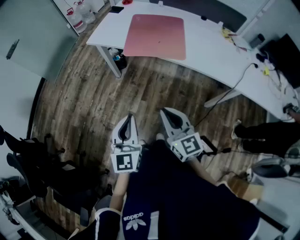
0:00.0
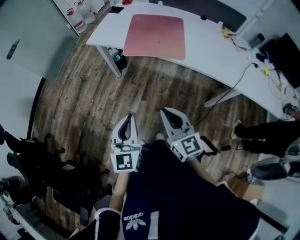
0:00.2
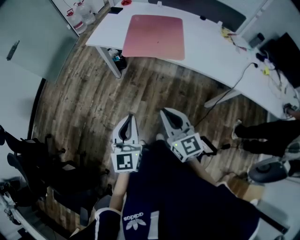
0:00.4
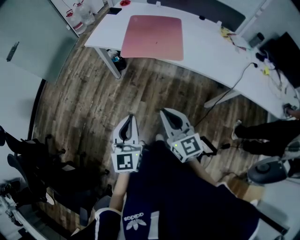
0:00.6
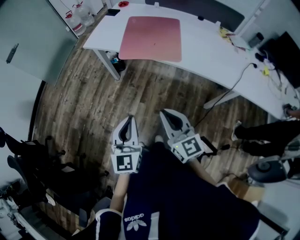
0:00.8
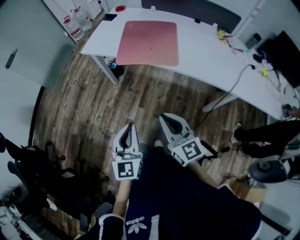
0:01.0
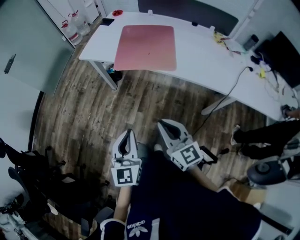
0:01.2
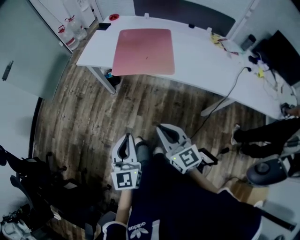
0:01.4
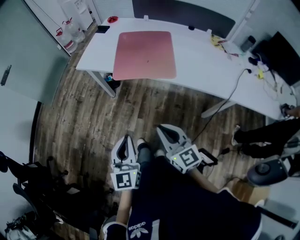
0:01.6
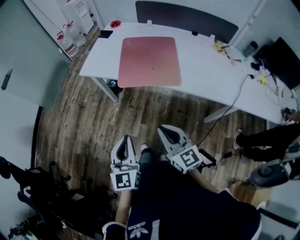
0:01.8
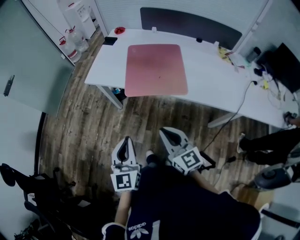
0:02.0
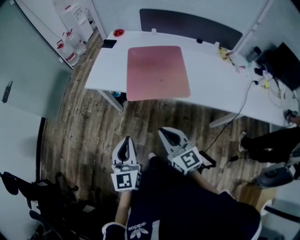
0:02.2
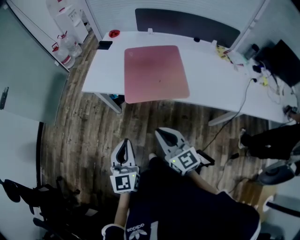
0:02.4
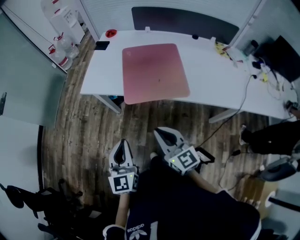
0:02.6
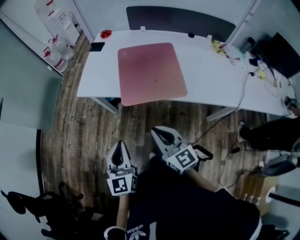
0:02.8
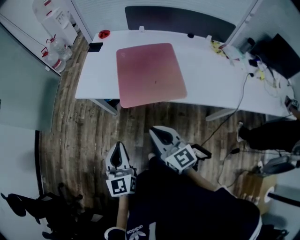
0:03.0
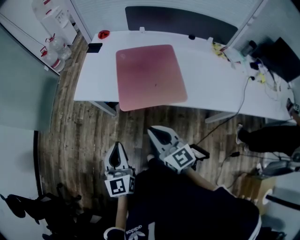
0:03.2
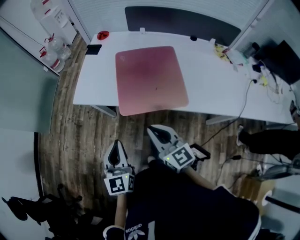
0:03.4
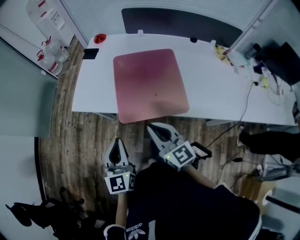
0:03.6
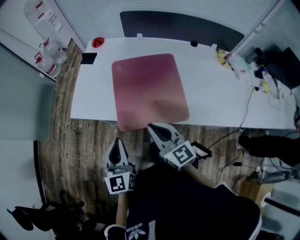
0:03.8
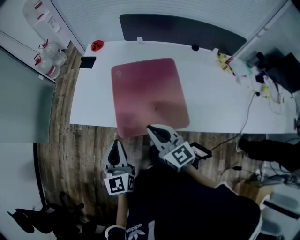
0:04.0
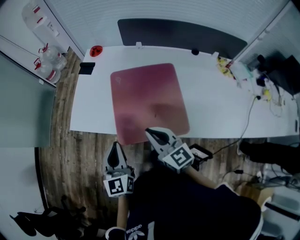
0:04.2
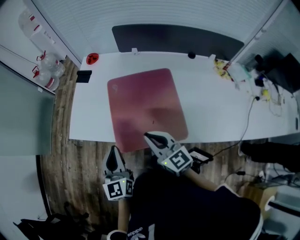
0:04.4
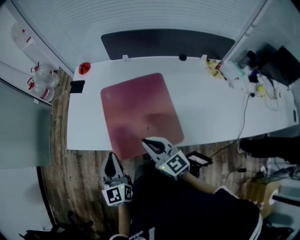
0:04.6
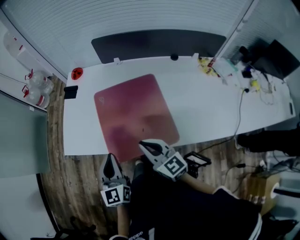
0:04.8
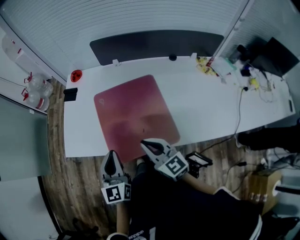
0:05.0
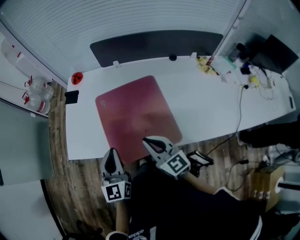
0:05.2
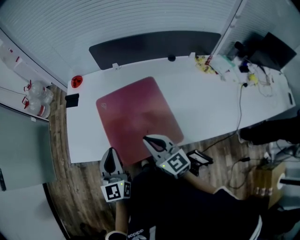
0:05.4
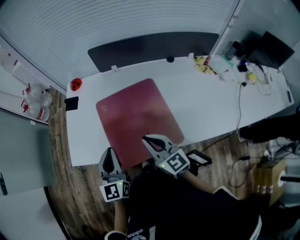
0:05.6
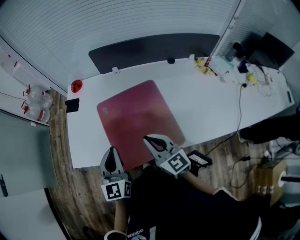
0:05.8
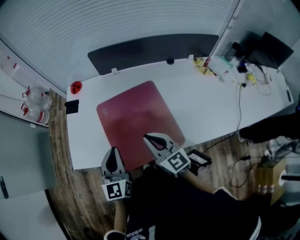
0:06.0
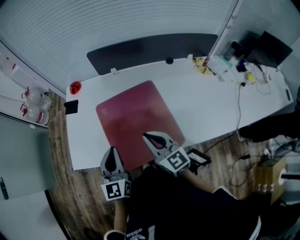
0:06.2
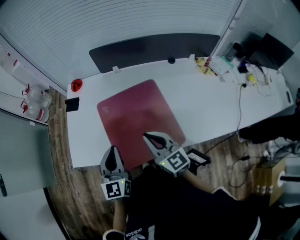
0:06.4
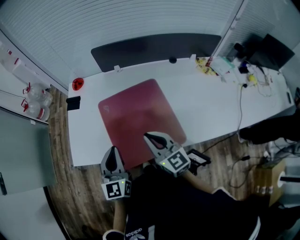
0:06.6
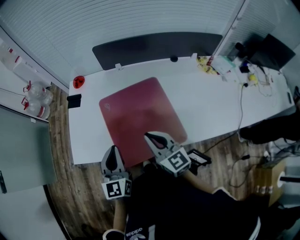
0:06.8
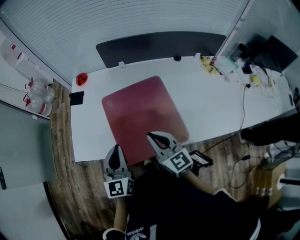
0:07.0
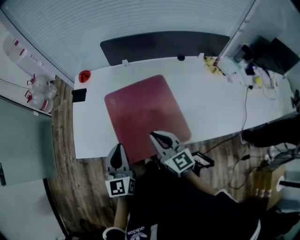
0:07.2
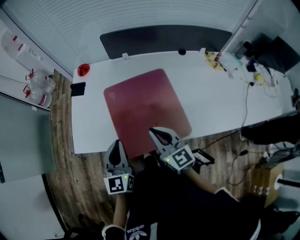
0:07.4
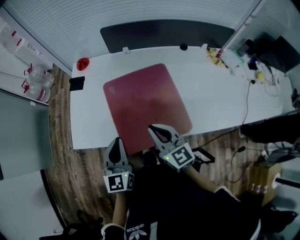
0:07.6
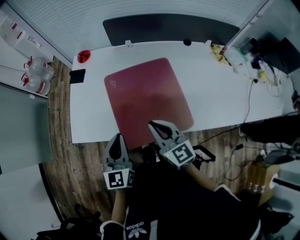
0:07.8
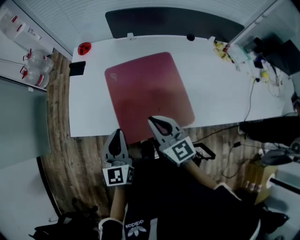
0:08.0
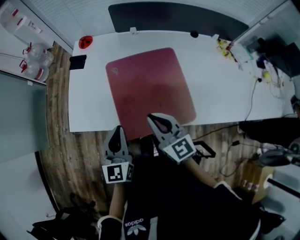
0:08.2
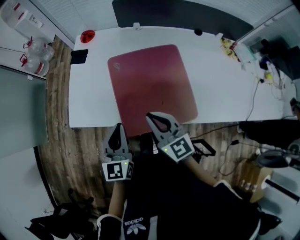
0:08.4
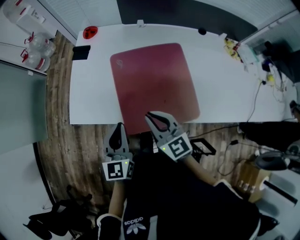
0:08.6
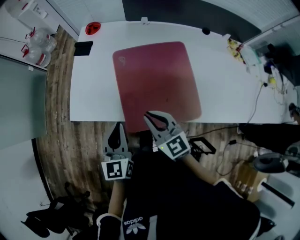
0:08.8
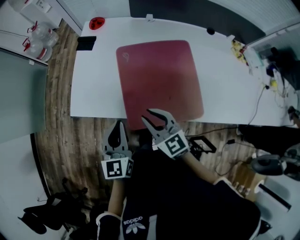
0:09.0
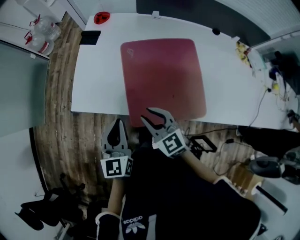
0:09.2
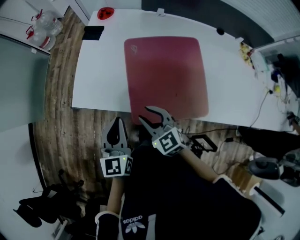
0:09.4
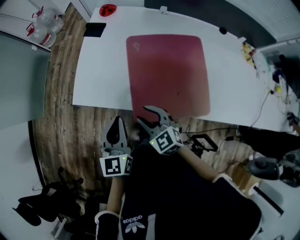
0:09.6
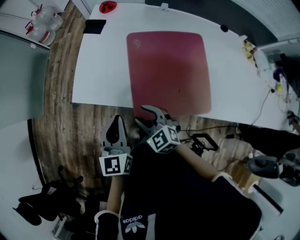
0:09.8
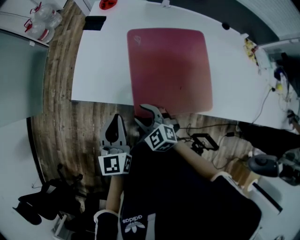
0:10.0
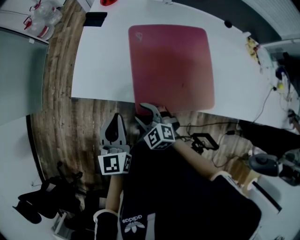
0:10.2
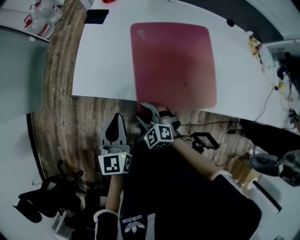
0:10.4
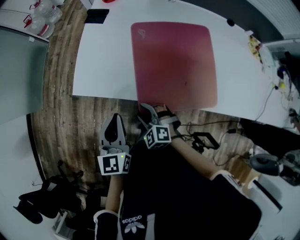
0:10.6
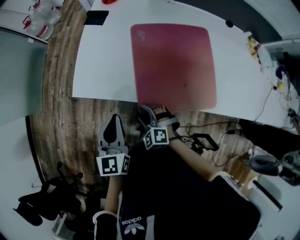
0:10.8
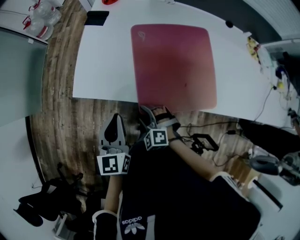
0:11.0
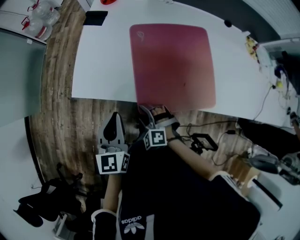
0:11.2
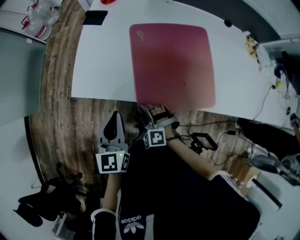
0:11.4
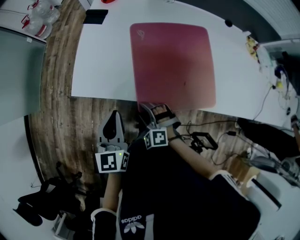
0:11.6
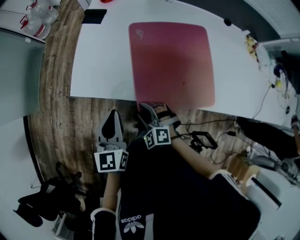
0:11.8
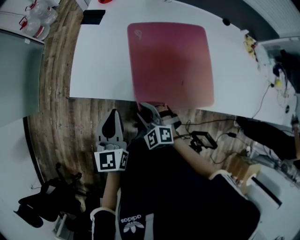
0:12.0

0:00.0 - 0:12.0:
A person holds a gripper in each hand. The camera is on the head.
0:00.0 - 0:01.6: The right gripper changes place by roughly 5 cm; the left gripper ends up about 5 cm from where it was.
0:01.6 - 0:03.0: Both grippers move forward and to the left, about 20 cm.
0:03.0 - 0:04.4: The right gripper goes roughly 25 cm forward and to the right; the left gripper shifts approximately 25 cm forward.
0:04.4 - 0:06.0: Both grippers move forward, approximately 5 cm.
0:06.0 - 0:07.6: The grippers make only small movements.
0:07.6 - 0:09.0: The right gripper heads to the left and downward, covering some 10 cm, and swivels approximately 20 degrees; the left gripper is displaced to the left by approximately 5 cm.
0:09.0 - 0:10.4: The left gripper goes roughly 5 cm to the left, while the right gripper travels downward and to the left by approximately 20 cm, changes its angle by some 40 degrees, and opens.

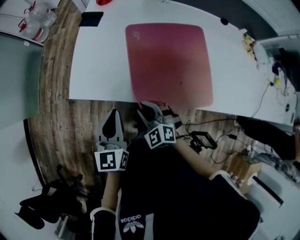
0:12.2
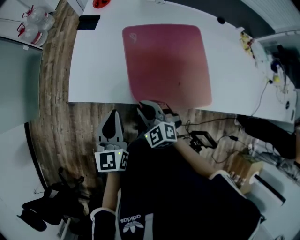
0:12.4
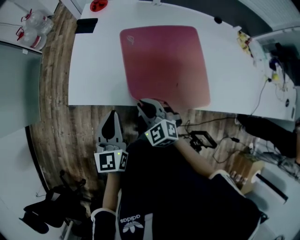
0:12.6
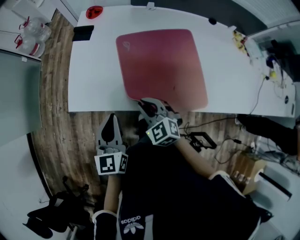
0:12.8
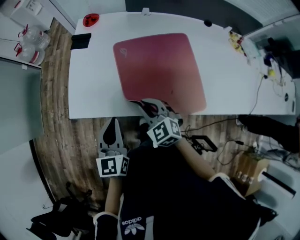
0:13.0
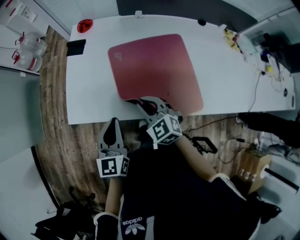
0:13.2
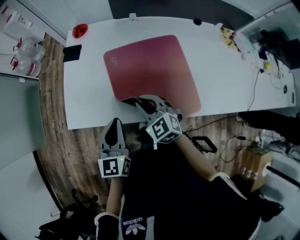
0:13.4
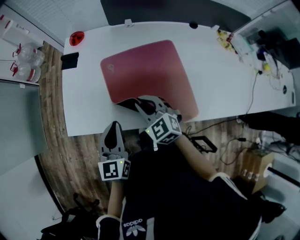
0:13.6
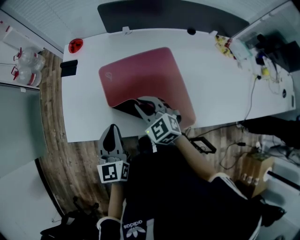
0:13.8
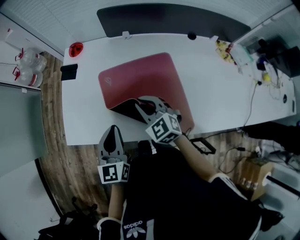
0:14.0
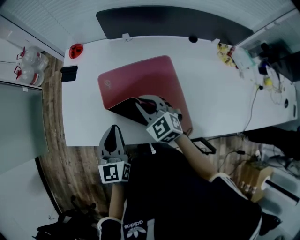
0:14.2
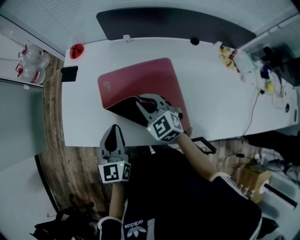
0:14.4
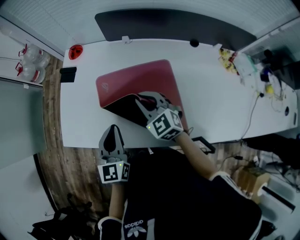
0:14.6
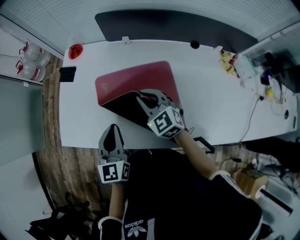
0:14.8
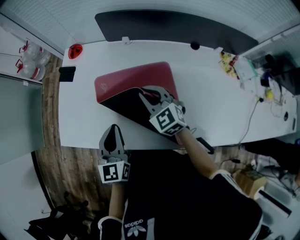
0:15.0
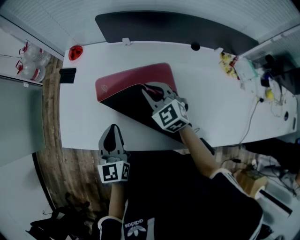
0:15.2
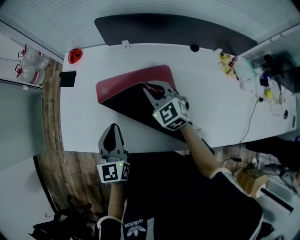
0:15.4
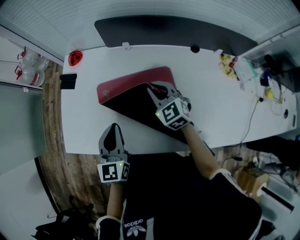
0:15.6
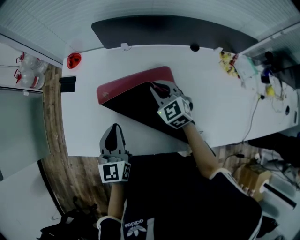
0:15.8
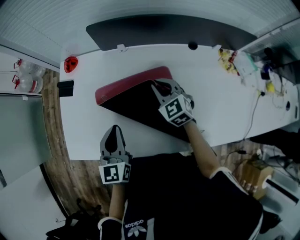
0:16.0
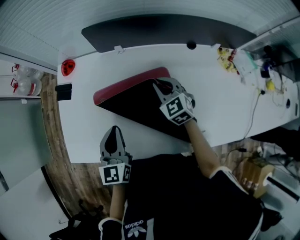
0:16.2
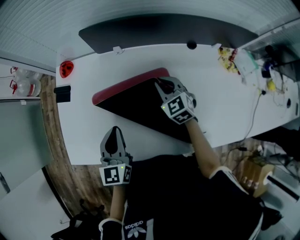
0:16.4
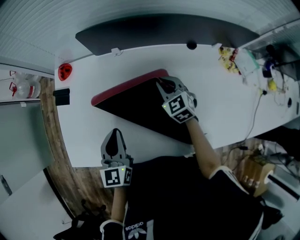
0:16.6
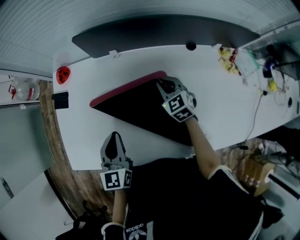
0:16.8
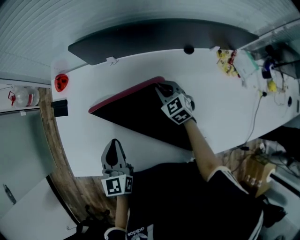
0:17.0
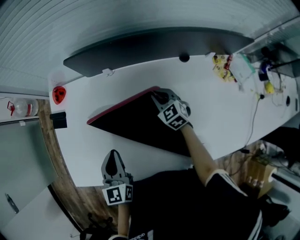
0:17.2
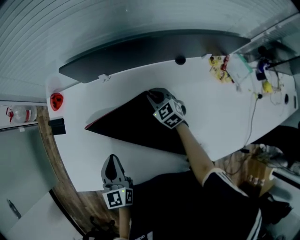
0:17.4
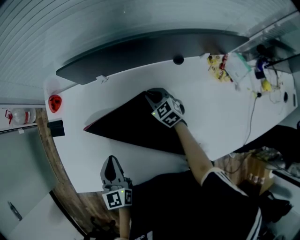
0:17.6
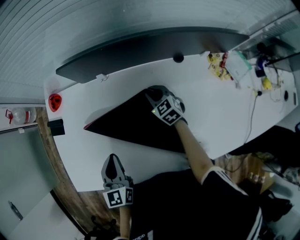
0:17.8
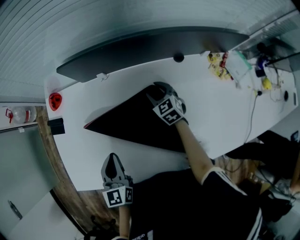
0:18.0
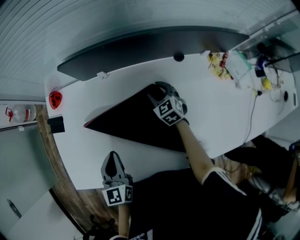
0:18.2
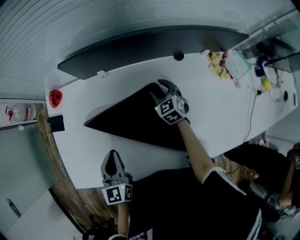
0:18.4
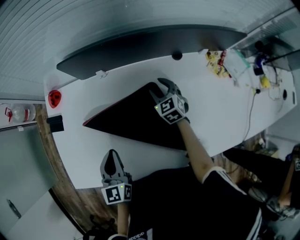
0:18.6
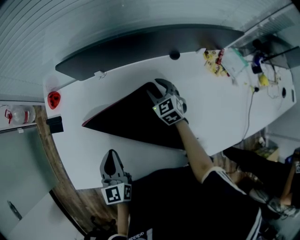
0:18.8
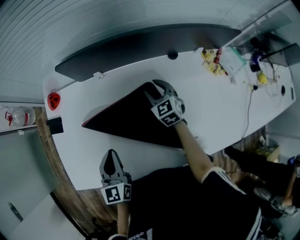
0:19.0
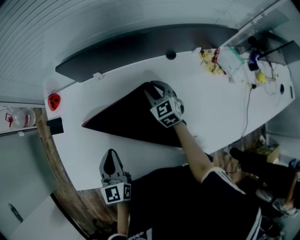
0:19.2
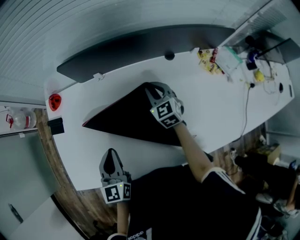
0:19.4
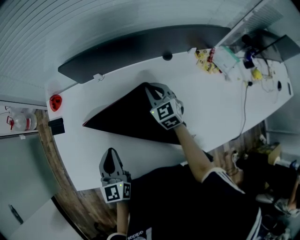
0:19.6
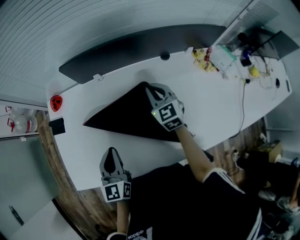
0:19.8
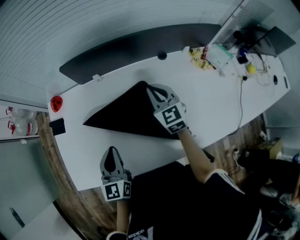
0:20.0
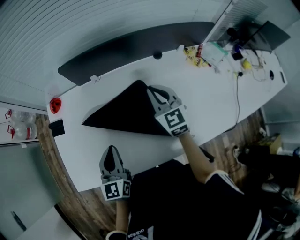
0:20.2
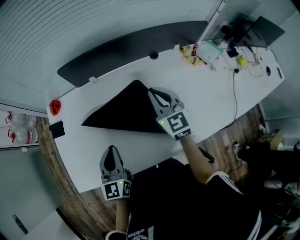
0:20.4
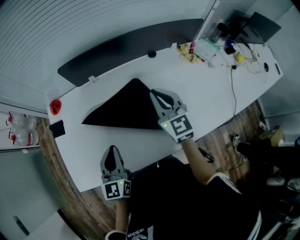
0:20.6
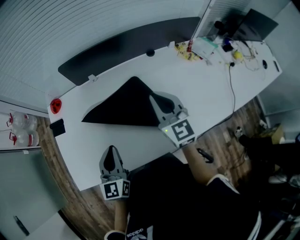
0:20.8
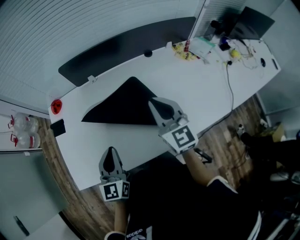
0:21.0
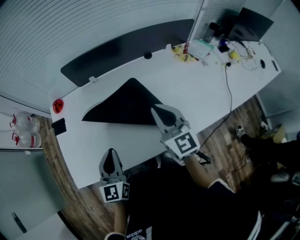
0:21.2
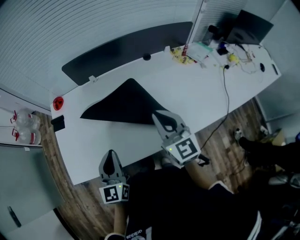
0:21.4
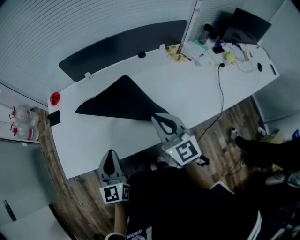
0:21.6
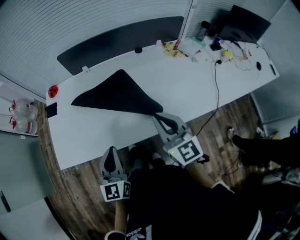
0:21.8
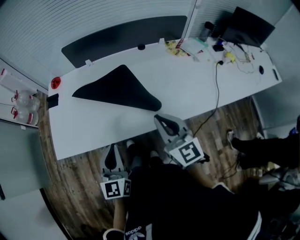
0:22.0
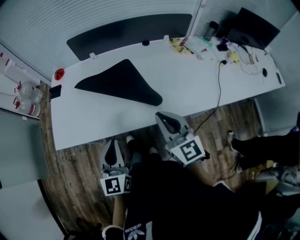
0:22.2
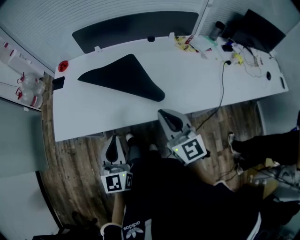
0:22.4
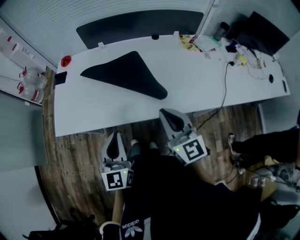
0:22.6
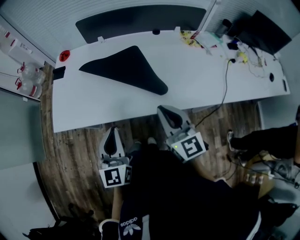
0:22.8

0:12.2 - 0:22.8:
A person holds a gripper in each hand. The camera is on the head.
0:12.2 - 0:13.8: The left gripper heads to the right and forward, covering approximately 10 cm. The right gripper travels forward, to the right and upward by roughly 20 cm.
0:13.8 - 0:15.2: The right gripper heads to the right and forward, covering approximately 15 cm. The left gripper is displaced to the right and forward by some 10 cm.
0:15.2 - 0:16.8: The right gripper travels to the right, forward and downward by approximately 15 cm, while the left gripper travels forward by about 10 cm.
0:16.8 - 0:18.2: The right gripper shifts about 5 cm downward, and opens its fingers.
0:18.2 - 0:19.8: The right gripper heads upward, covering some 15 cm, and closes up.
0:19.8 - 0:21.2: The left gripper shifts roughly 10 cm backward. The right gripper travels backward and upward by about 25 cm, and rotates approximately 20 degrees.
0:21.2 - 0:22.8: The right gripper heads backward, covering some 20 cm. The left gripper shifts roughly 20 cm backward and to the right.

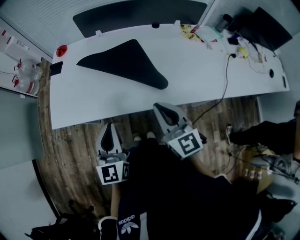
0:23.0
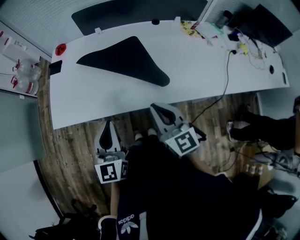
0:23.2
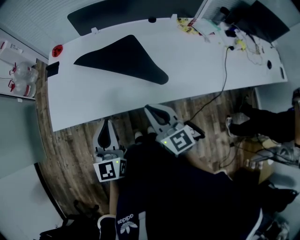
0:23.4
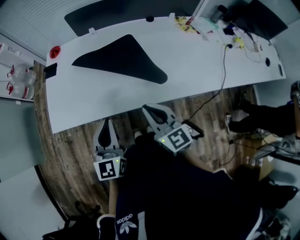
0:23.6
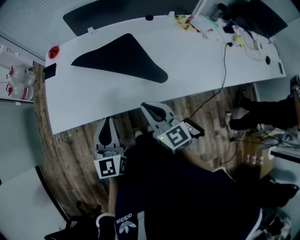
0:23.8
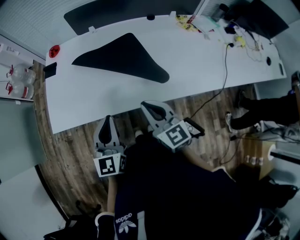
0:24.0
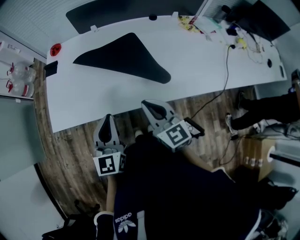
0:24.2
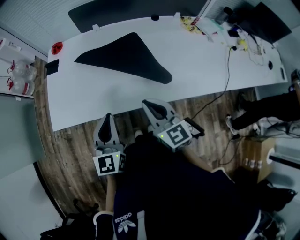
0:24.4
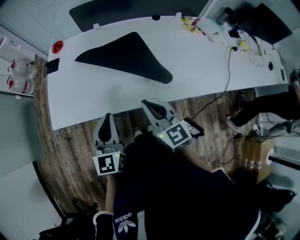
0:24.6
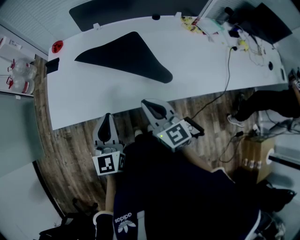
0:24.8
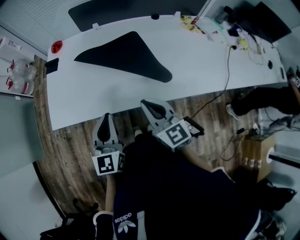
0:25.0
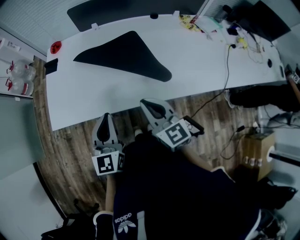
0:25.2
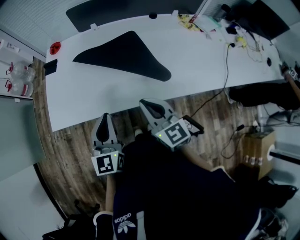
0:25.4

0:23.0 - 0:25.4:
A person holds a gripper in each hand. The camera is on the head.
0:23.0 - 0:24.2: The right gripper is displaced to the left by about 5 cm.
0:24.2 - 0:25.4: Neither gripper changes place.
